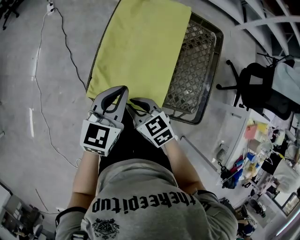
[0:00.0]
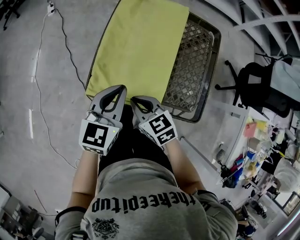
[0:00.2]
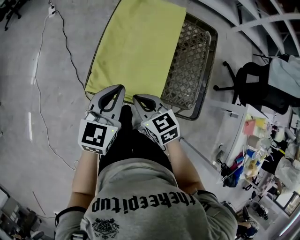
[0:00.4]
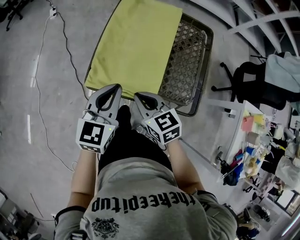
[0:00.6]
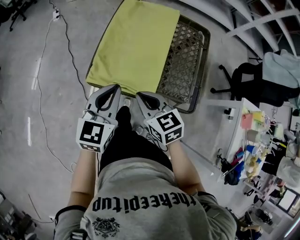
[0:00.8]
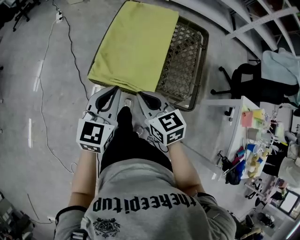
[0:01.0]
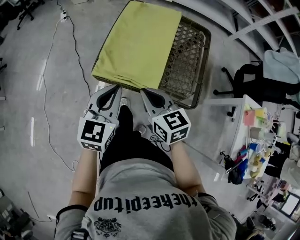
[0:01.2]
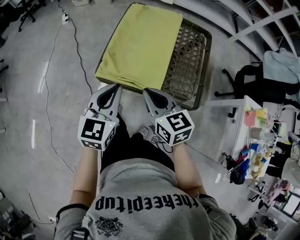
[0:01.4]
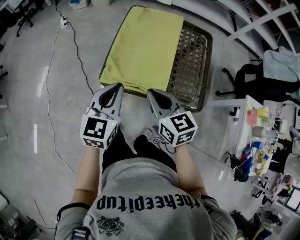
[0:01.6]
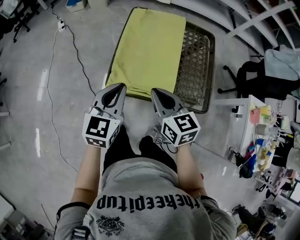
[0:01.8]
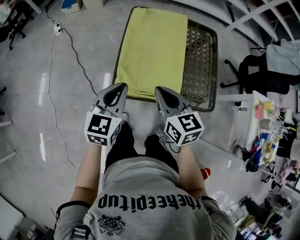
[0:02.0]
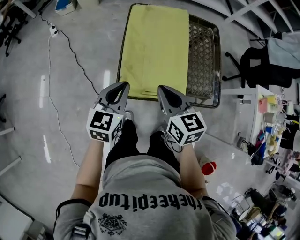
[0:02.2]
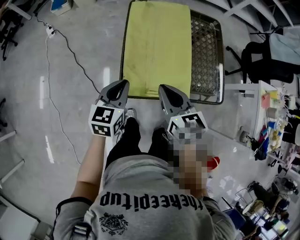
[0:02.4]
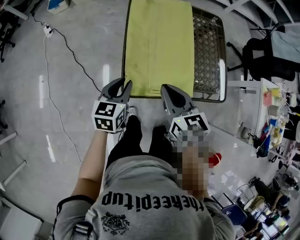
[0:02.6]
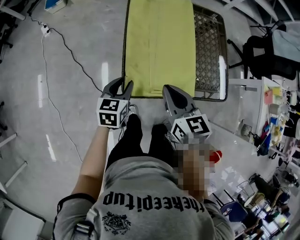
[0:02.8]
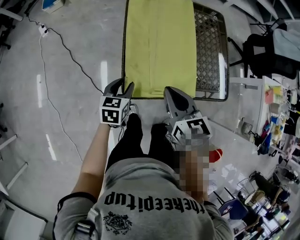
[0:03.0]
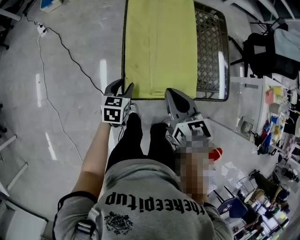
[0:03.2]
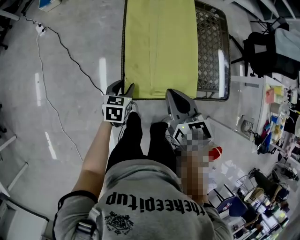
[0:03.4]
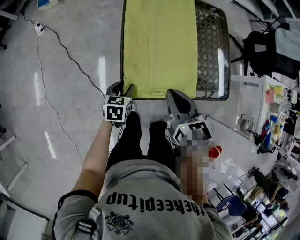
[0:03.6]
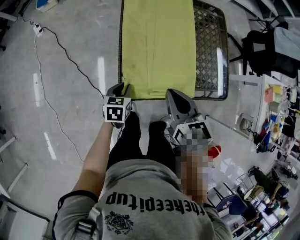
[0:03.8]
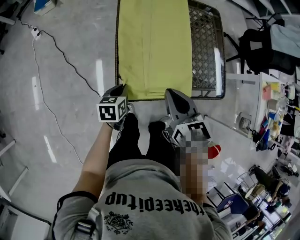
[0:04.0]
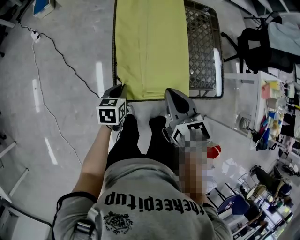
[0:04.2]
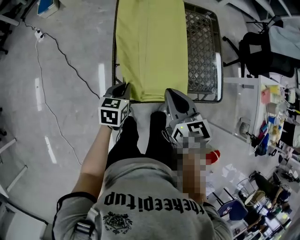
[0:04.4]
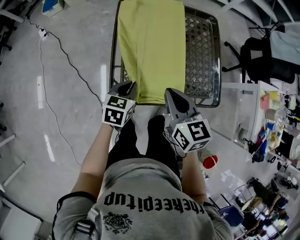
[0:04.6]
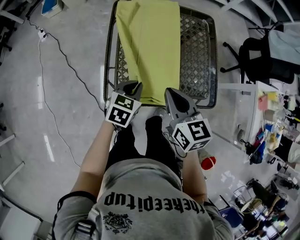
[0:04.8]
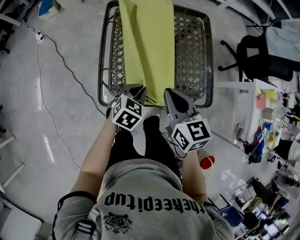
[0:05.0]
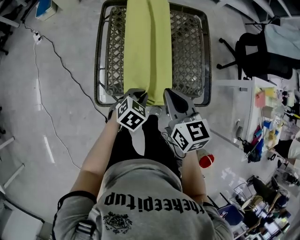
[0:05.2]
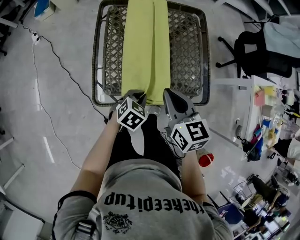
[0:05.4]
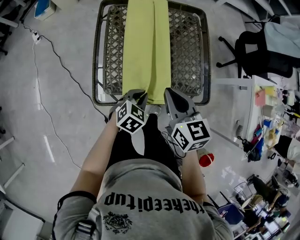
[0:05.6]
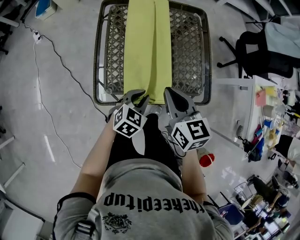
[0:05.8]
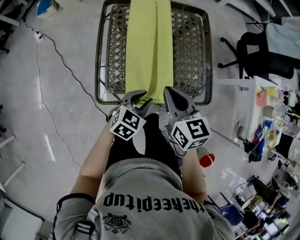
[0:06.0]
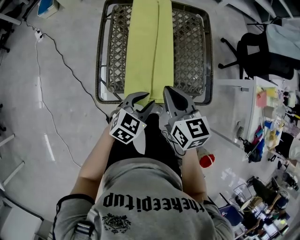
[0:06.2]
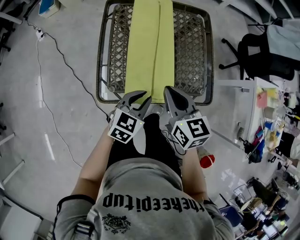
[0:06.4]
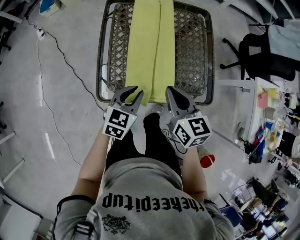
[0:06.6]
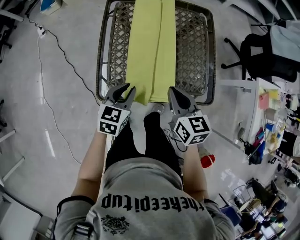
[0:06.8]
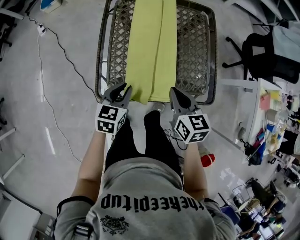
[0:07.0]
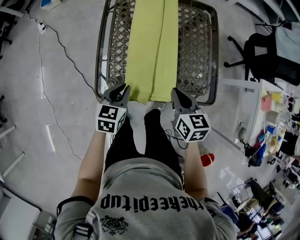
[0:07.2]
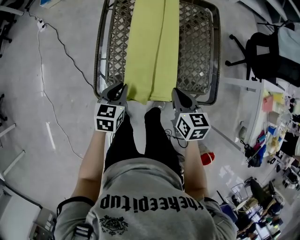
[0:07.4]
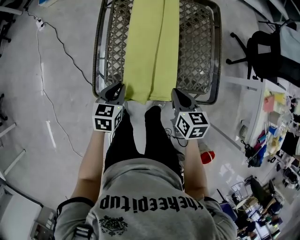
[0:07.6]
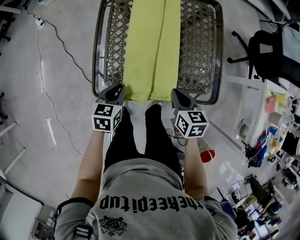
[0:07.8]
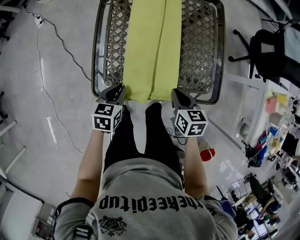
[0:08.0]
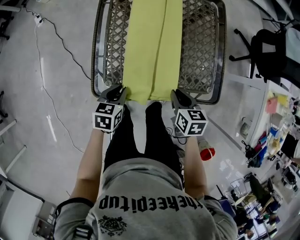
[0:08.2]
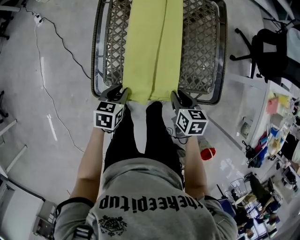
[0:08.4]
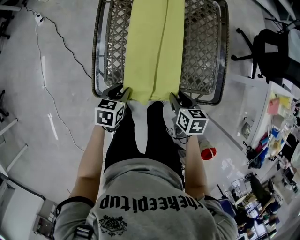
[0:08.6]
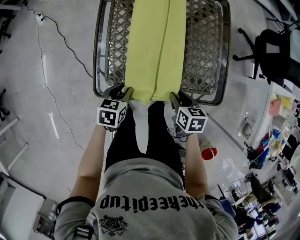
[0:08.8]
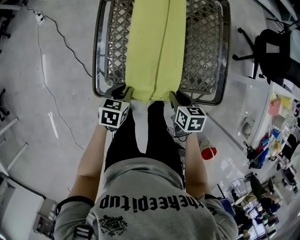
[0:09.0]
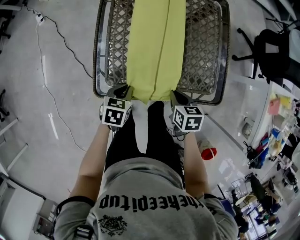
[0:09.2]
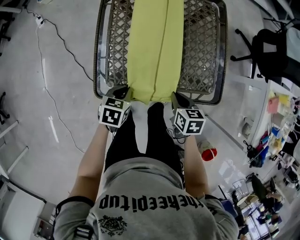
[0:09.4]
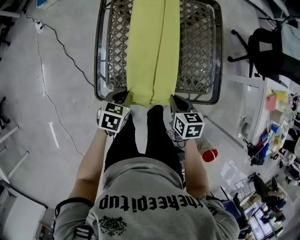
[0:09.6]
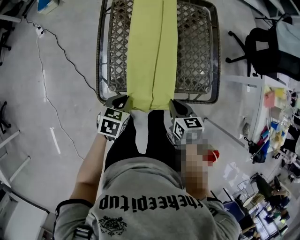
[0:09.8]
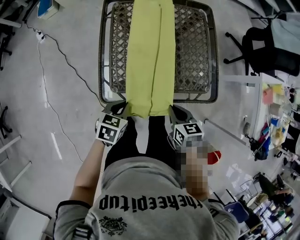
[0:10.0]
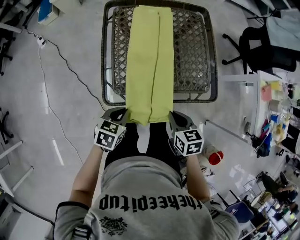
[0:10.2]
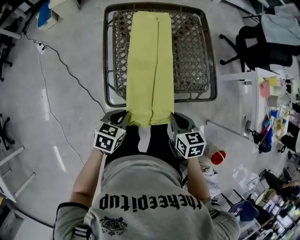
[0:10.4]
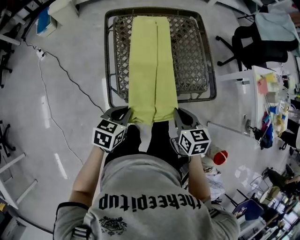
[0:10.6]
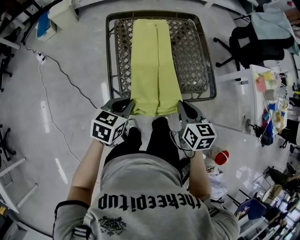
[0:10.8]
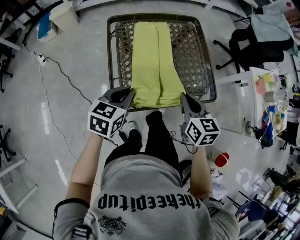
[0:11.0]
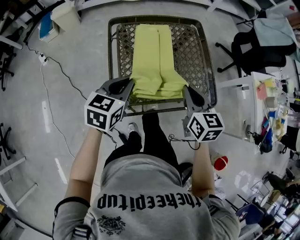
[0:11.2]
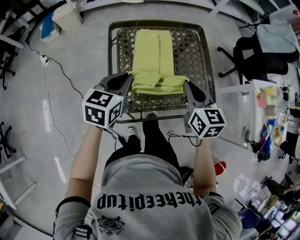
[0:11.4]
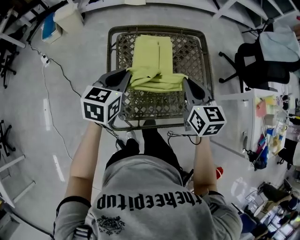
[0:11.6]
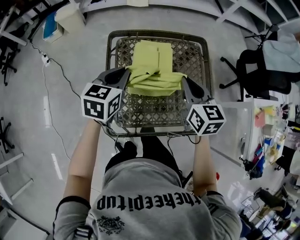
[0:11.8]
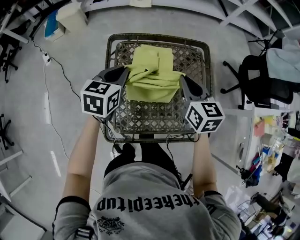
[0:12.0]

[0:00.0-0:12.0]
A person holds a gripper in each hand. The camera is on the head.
0:00.0 to 0:01.6: The left gripper heads backward, to the left and upward, covering about 15 cm, while the right gripper goes approximately 15 cm upward and backward, and turns by roughly 30 degrees.
0:01.6 to 0:03.0: The left gripper goes roughly 25 cm downward, to the left and forward, swivels roughly 30 degrees, and opens, while the right gripper travels to the left and forward by some 10 cm, and turns by approximately 20 degrees.
0:03.0 to 0:04.4: The left gripper changes place by approximately 5 cm, and closes. Meanwhile the right gripper shifts by roughly 5 cm.
0:04.4 to 0:06.0: The left gripper travels to the right by approximately 20 cm, rotates about 30 degrees, and opens its fingers. The right gripper shifts about 10 cm to the right.
0:06.0 to 0:07.6: The right gripper is displaced downward and to the right by about 15 cm. Meanwhile the left gripper travels to the left by roughly 10 cm, and turns by about 30 degrees.
0:07.6 to 0:09.0: The left gripper shifts about 5 cm downward, while the right gripper heads downward, covering some 10 cm, and opens up.
0:09.0 to 0:10.4: Both grippers move upward and backward, some 15 cm. The right gripper closes.
0:10.4 to 0:12.0: The right gripper shifts about 35 cm forward and upward, and changes its angle by about 20 degrees. The left gripper goes approximately 35 cm forward, and swivels some 20 degrees.

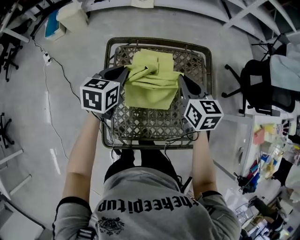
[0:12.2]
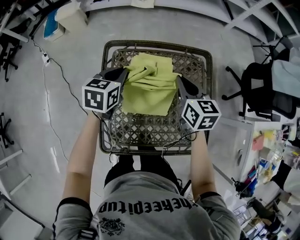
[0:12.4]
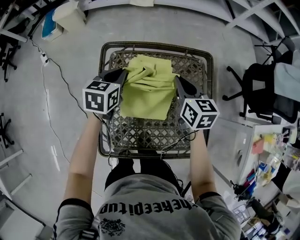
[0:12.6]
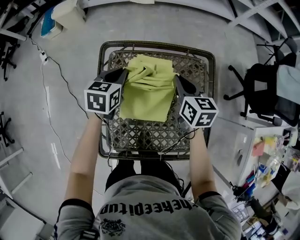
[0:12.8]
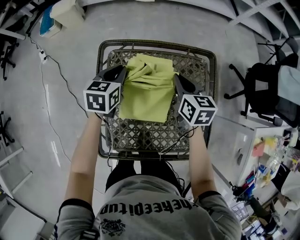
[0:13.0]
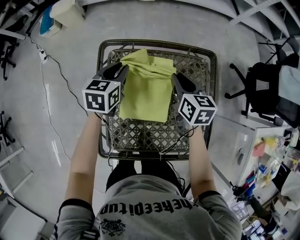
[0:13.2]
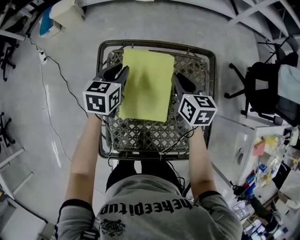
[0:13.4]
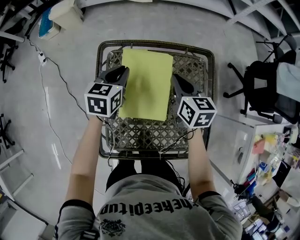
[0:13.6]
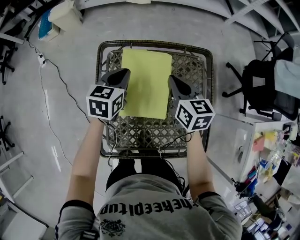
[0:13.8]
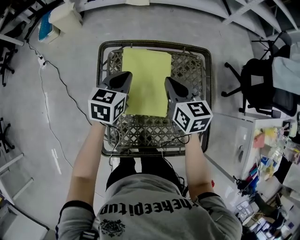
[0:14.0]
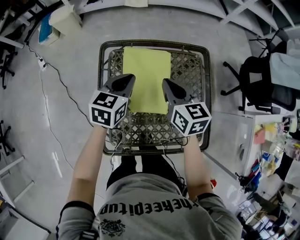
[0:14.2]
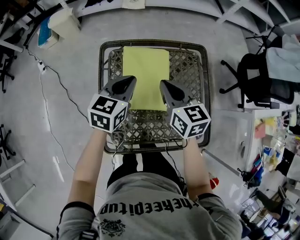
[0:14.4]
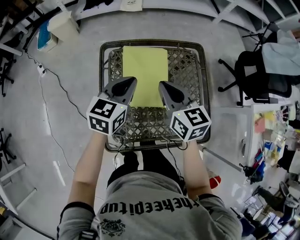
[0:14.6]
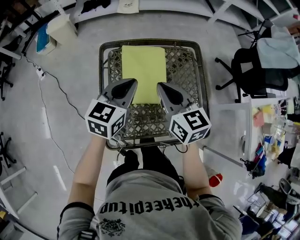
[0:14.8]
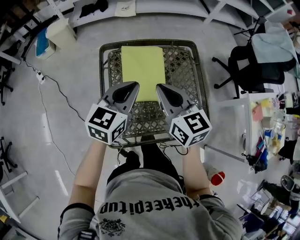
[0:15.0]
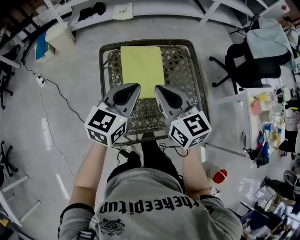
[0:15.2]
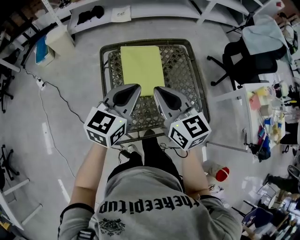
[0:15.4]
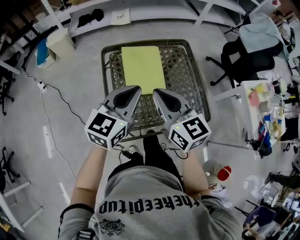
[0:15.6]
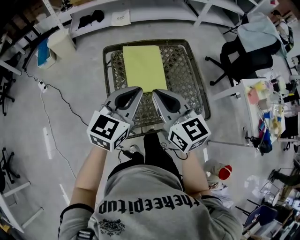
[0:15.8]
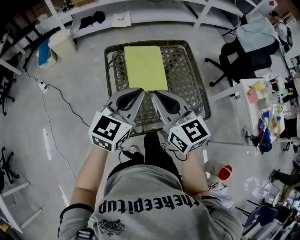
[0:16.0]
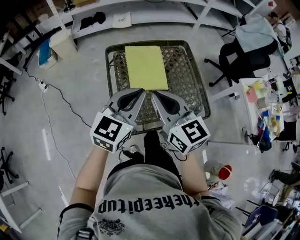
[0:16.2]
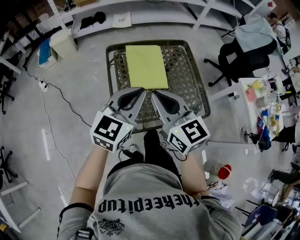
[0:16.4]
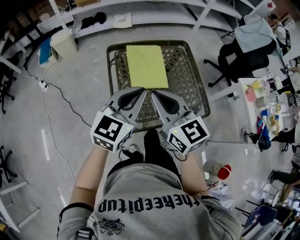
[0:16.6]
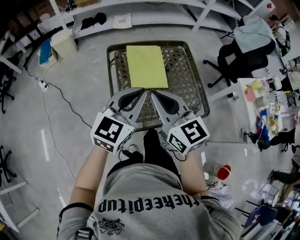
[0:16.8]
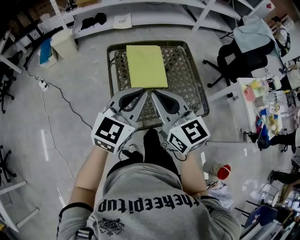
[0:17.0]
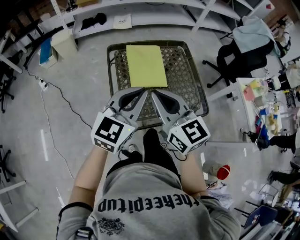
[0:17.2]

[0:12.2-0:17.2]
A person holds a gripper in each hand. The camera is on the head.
0:12.2 to 0:13.8: The grippers both shift forward by roughly 5 cm.
0:13.8 to 0:15.6: The grippers both shift backward and upward by approximately 30 cm. The left gripper swivels about 30 degrees.
0:15.6 to 0:17.2: The two grippers go about 10 cm backward.

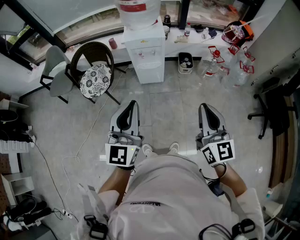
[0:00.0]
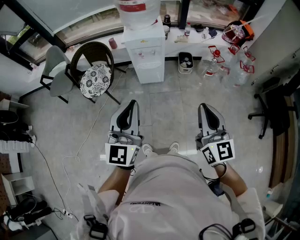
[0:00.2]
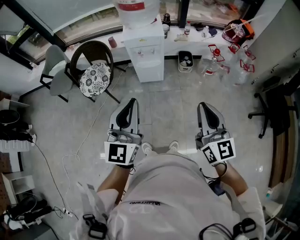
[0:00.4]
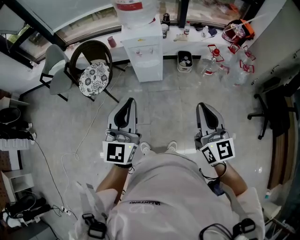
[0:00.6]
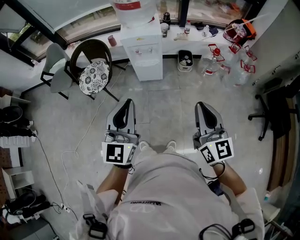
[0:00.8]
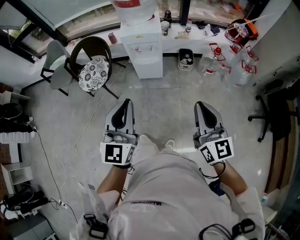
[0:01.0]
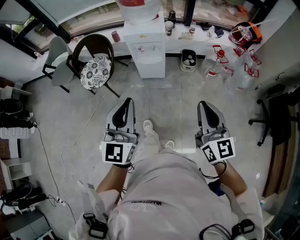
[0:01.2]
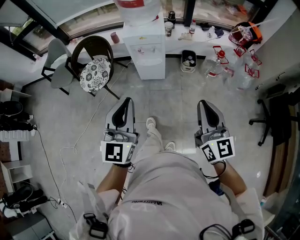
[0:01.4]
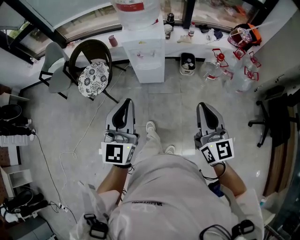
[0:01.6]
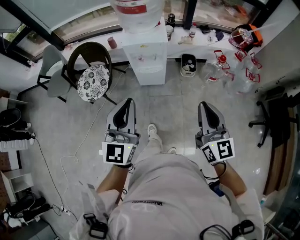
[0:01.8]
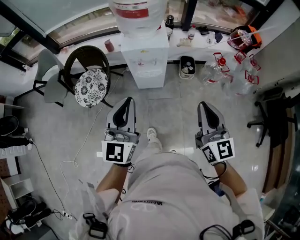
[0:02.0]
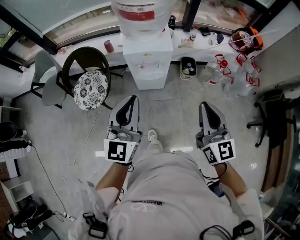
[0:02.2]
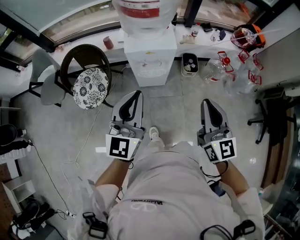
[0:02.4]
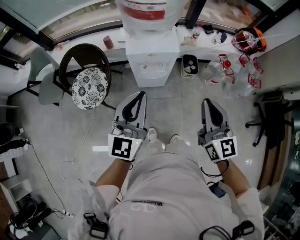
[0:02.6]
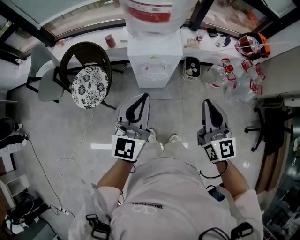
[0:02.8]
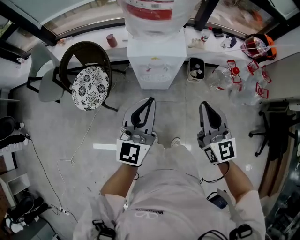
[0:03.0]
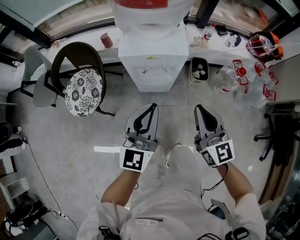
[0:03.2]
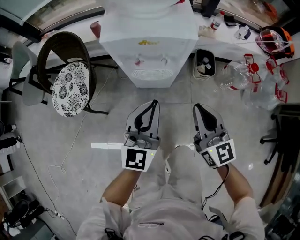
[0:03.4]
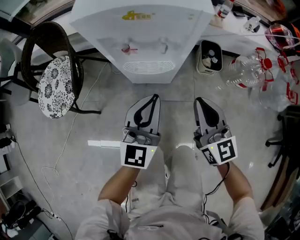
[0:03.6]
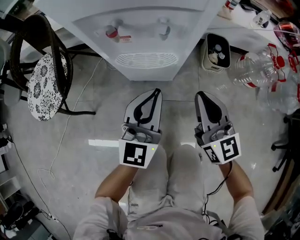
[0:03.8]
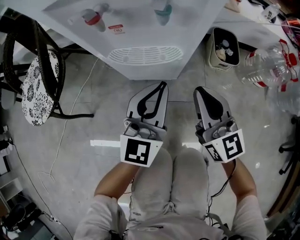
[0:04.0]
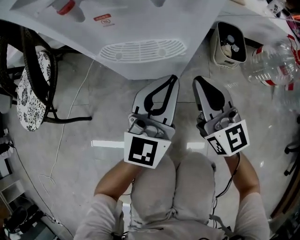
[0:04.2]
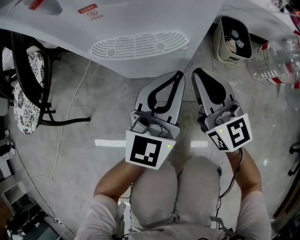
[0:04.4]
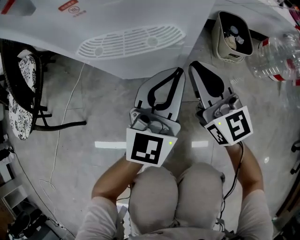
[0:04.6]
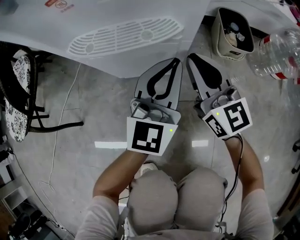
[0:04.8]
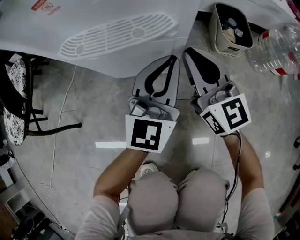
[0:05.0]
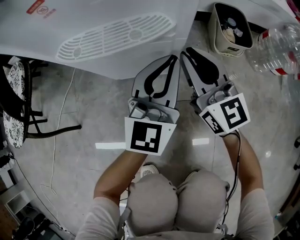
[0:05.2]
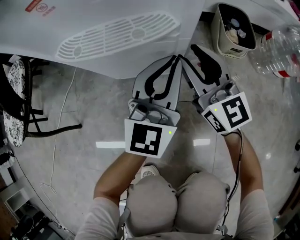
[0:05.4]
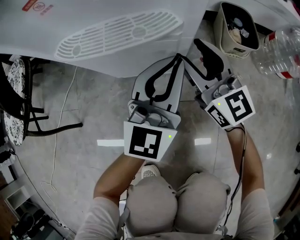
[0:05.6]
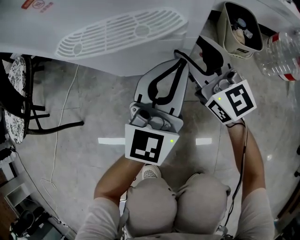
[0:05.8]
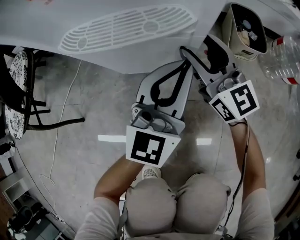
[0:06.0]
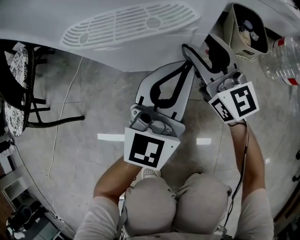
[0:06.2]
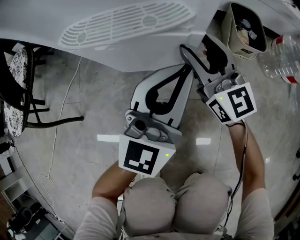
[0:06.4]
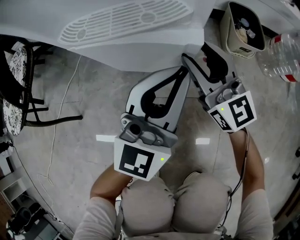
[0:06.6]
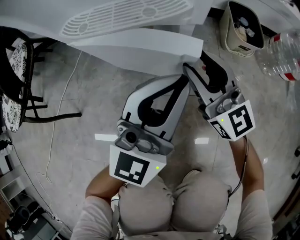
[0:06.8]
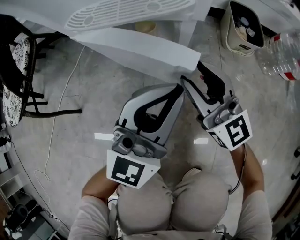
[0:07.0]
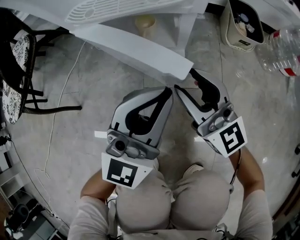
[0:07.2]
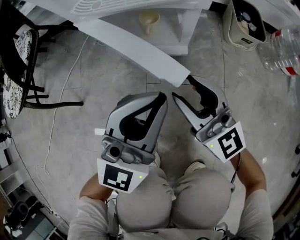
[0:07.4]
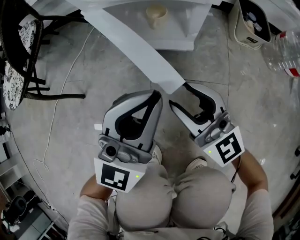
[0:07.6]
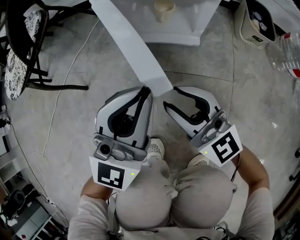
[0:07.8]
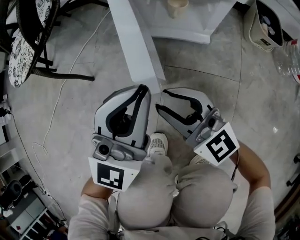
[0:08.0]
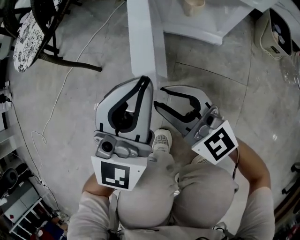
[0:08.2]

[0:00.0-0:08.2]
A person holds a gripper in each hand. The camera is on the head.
0:00.0 to 0:01.6: The grippers both shift forward by about 5 cm.
0:01.6 to 0:03.2: The two grippers go some 35 cm forward and downward.
0:03.2 to 0:05.0: Both grippers move downward, roughly 60 cm.
0:05.0 to 0:06.6: The right gripper opens its fingers, while the left gripper moves some 5 cm.
0:06.6 to 0:08.2: The right gripper ends up some 30 cm from where it was, turns by roughly 30 degrees, and closes. Meanwhile the left gripper moves some 25 cm, and changes its angle by roughly 20 degrees.
